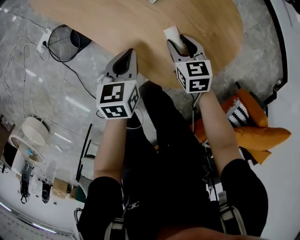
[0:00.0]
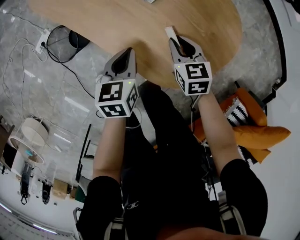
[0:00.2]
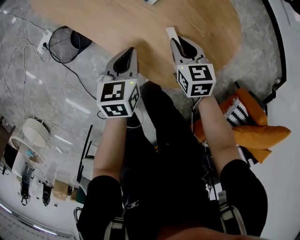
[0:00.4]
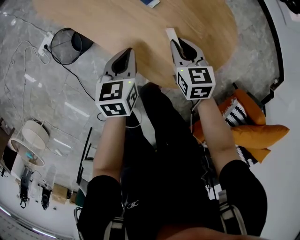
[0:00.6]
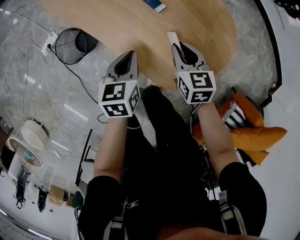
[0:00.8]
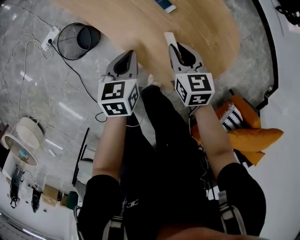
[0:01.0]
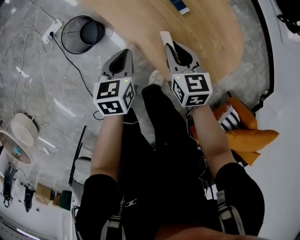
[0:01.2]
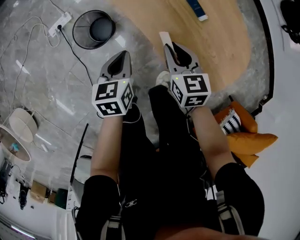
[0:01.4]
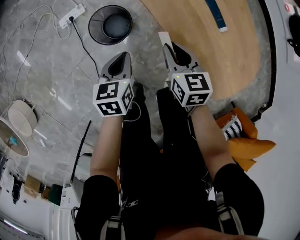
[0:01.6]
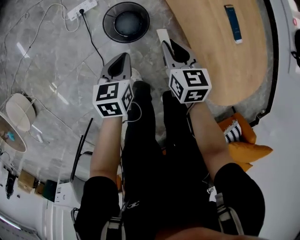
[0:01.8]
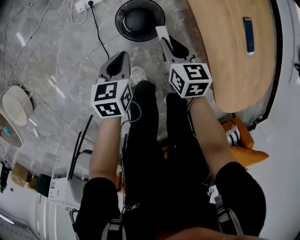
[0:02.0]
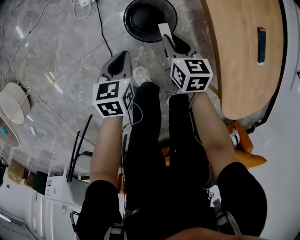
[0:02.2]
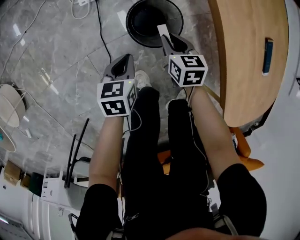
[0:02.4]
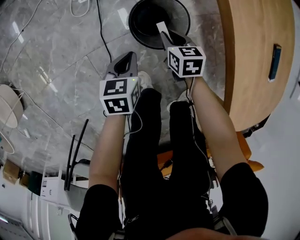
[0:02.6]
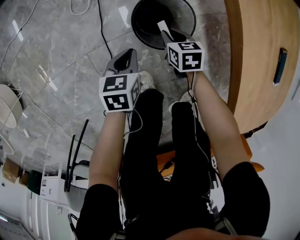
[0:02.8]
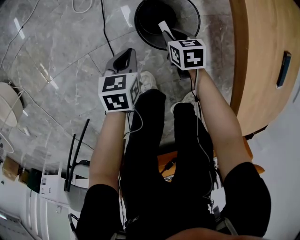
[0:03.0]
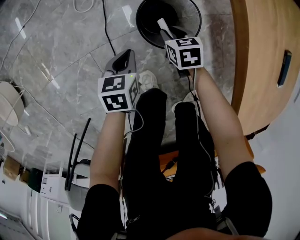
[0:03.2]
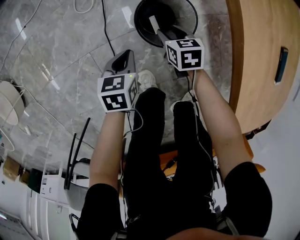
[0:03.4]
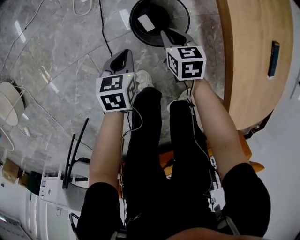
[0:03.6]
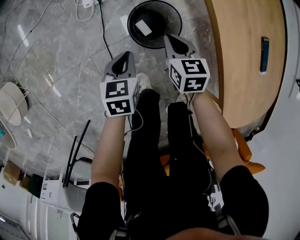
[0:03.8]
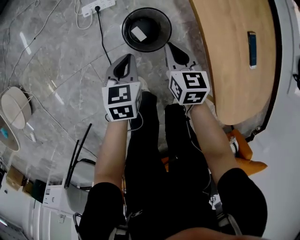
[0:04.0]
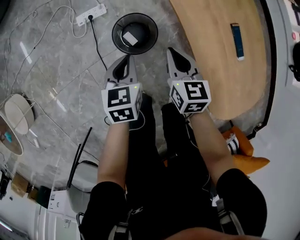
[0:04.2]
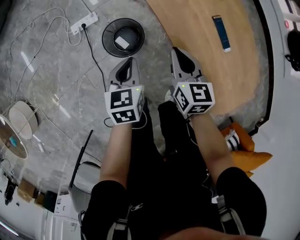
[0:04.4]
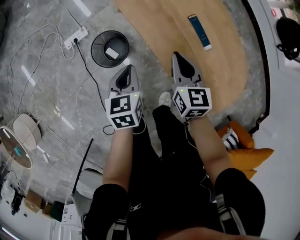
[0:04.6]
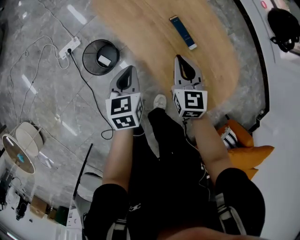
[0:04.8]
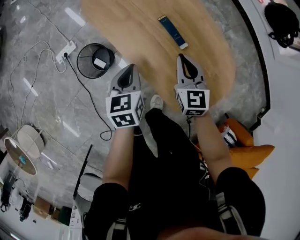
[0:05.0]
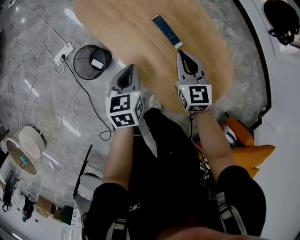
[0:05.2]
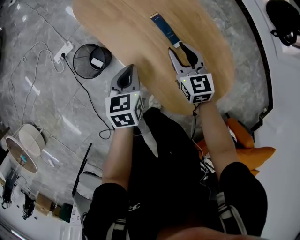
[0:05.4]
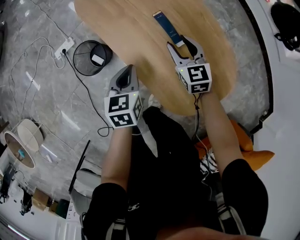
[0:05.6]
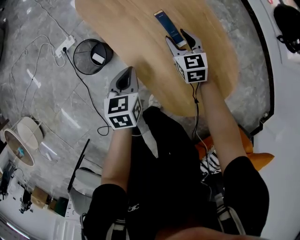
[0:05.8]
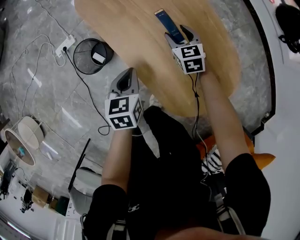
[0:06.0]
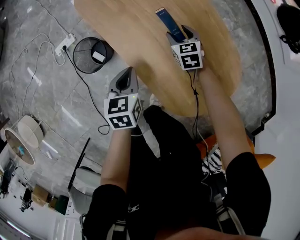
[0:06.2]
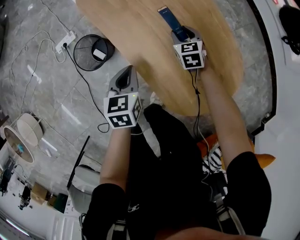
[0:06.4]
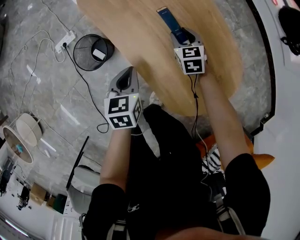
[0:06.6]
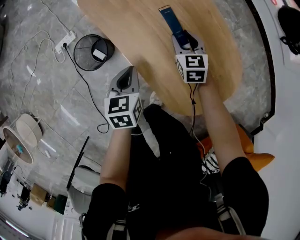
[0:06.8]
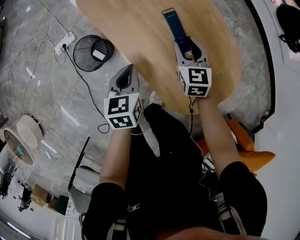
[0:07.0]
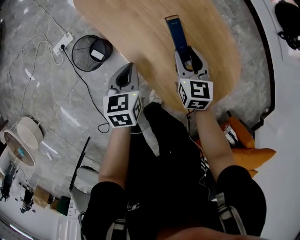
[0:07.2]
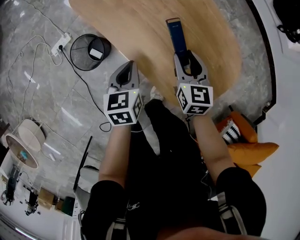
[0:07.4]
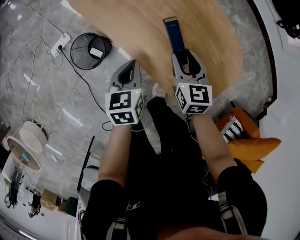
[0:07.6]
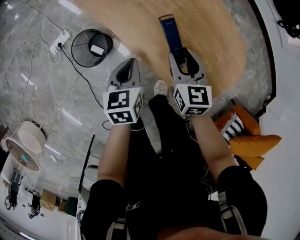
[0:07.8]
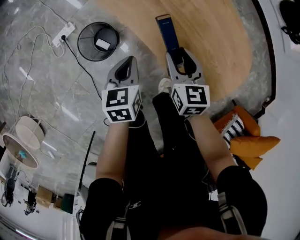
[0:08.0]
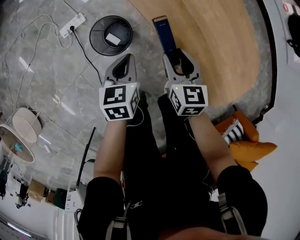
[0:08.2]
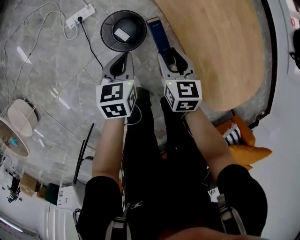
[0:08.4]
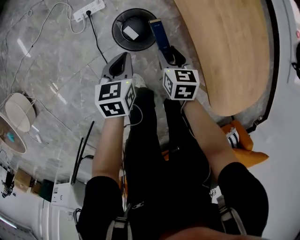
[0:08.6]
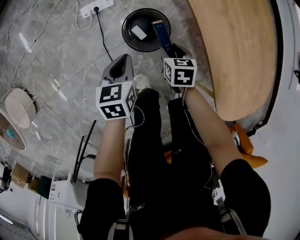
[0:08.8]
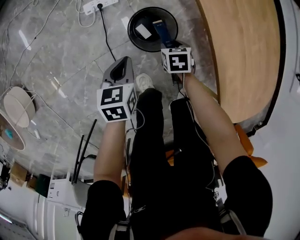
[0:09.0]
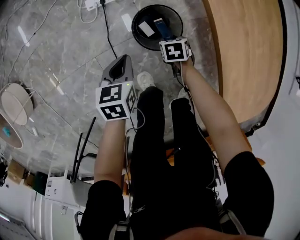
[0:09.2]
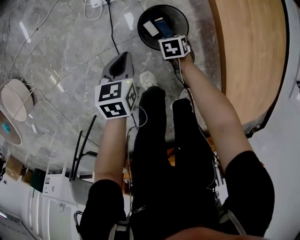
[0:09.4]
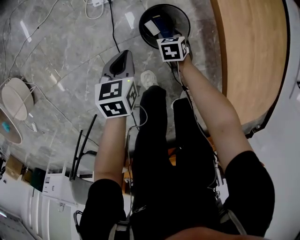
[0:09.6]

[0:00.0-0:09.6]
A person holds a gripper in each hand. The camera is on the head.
0:00.0 to 0:01.6: The grippers both shift to the left by about 30 cm. The right gripper closes up.
0:01.6 to 0:03.2: The grippers both shift downward and to the left by roughly 35 cm. The right gripper changes its angle by approximately 30 degrees.
0:03.2 to 0:04.8: The right gripper moves upward and to the right, some 60 cm, points its fingers about 30 degrees further upward, and closes up; the left gripper is displaced to the right and upward by about 50 cm, and turns by roughly 20 degrees.
0:04.8 to 0:06.4: The left gripper goes about 10 cm to the right and downward; the right gripper is displaced downward, forward and to the right by some 25 cm, swivels about 20 degrees, and opens.
0:06.4 to 0:08.0: The left gripper moves to the left, approximately 10 cm. Meanwhile the right gripper shifts about 20 cm backward, to the left and upward, and turns by about 20 degrees.
0:08.0 to 0:09.6: The right gripper moves roughly 50 cm, and angles its fingers downward, by approximately 30 degrees; the left gripper changes place by approximately 35 cm, and swivels about 20 degrees.

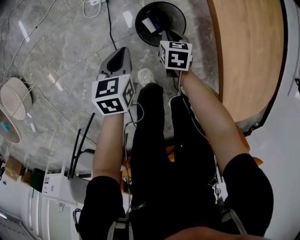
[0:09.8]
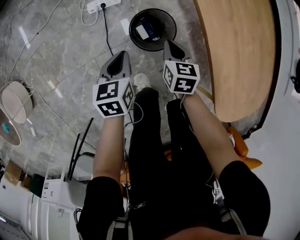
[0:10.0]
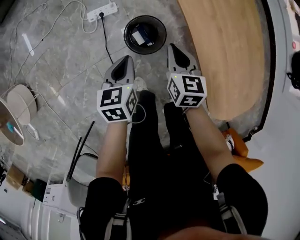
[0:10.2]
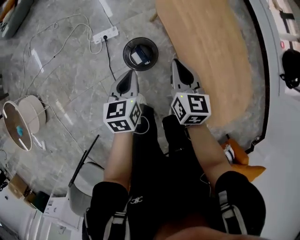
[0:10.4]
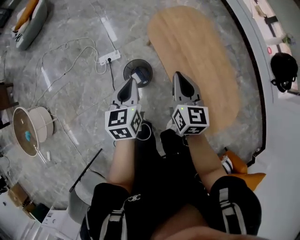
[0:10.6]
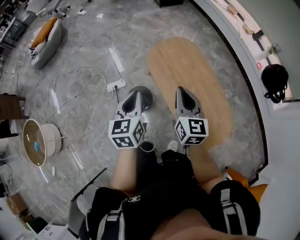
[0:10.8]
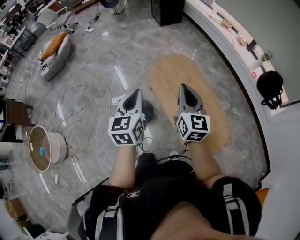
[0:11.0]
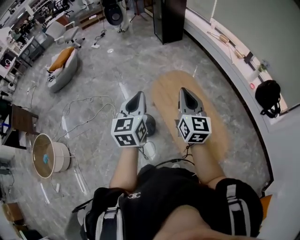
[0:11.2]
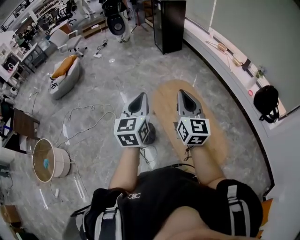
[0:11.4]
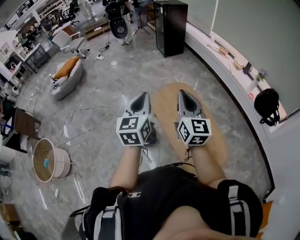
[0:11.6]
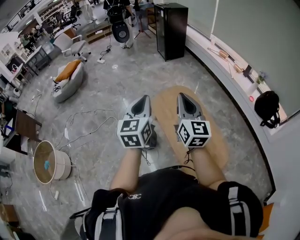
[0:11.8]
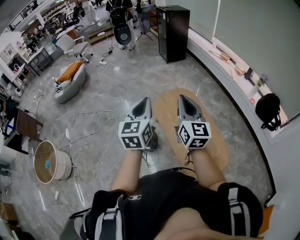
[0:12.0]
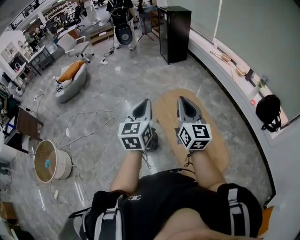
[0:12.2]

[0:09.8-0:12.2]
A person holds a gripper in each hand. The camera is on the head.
0:09.8 to 0:11.0: The left gripper travels upward and to the right by approximately 70 cm, and points its fingers about 30 degrees further upward; the right gripper is displaced upward by some 70 cm, and tilts its fingers some 60 degrees upward.
0:11.0 to 0:12.2: Both grippers move upward, about 10 cm.

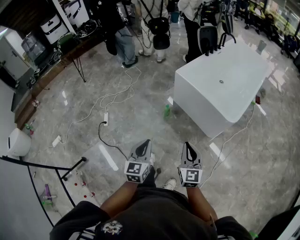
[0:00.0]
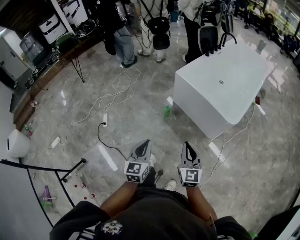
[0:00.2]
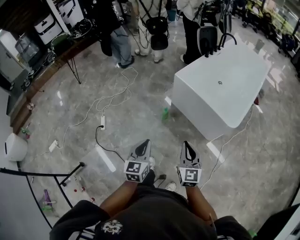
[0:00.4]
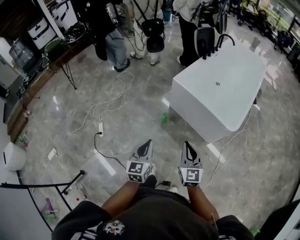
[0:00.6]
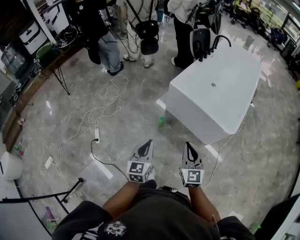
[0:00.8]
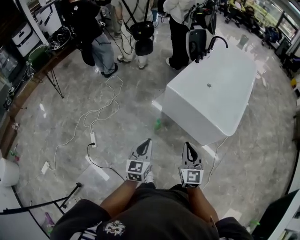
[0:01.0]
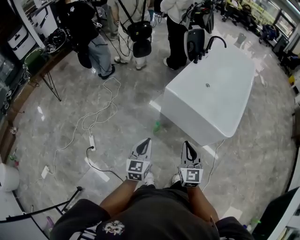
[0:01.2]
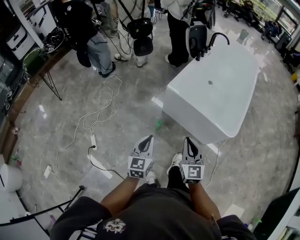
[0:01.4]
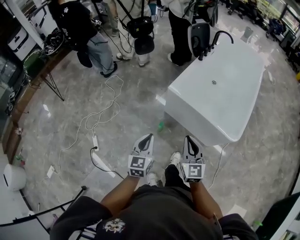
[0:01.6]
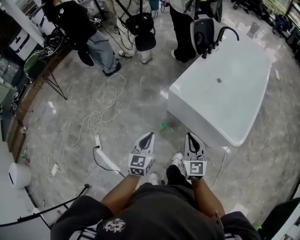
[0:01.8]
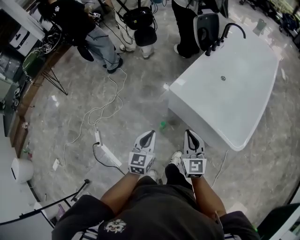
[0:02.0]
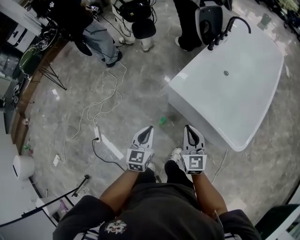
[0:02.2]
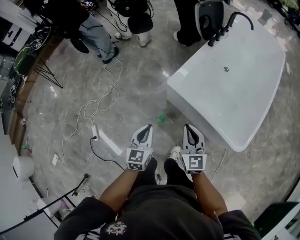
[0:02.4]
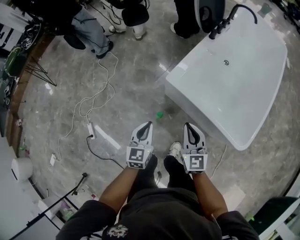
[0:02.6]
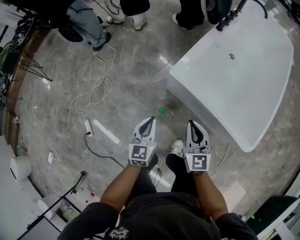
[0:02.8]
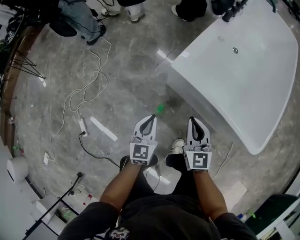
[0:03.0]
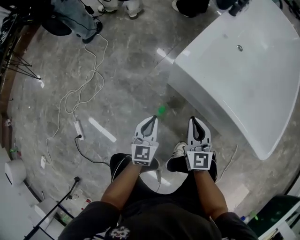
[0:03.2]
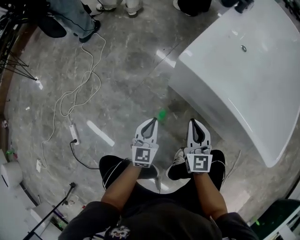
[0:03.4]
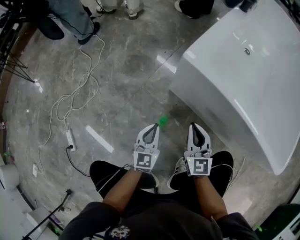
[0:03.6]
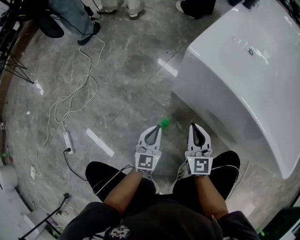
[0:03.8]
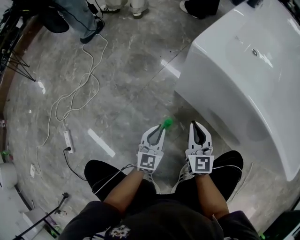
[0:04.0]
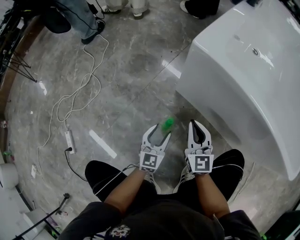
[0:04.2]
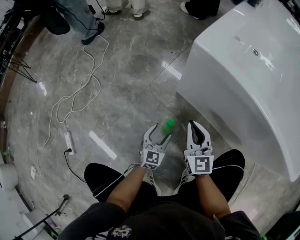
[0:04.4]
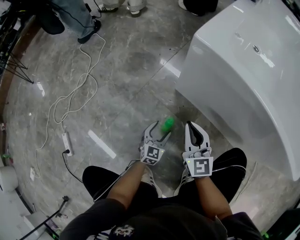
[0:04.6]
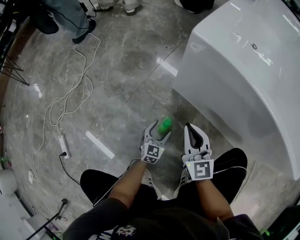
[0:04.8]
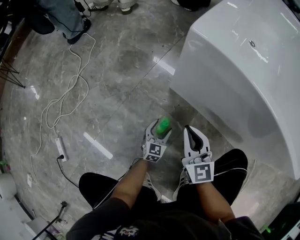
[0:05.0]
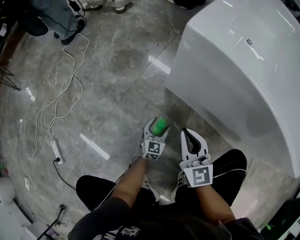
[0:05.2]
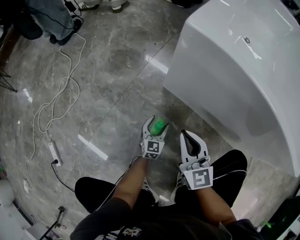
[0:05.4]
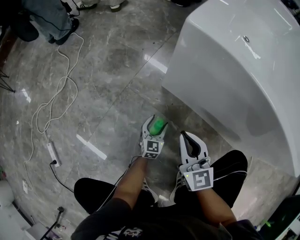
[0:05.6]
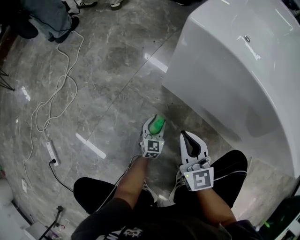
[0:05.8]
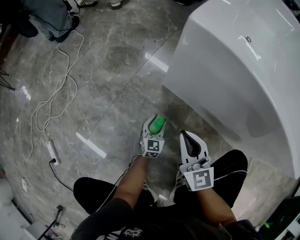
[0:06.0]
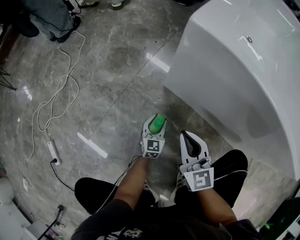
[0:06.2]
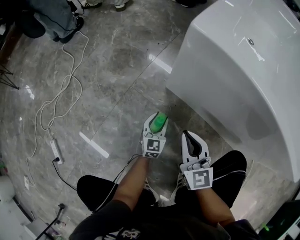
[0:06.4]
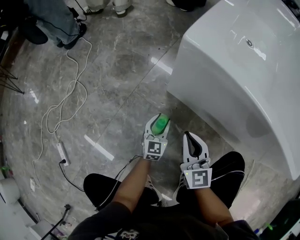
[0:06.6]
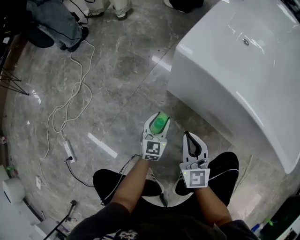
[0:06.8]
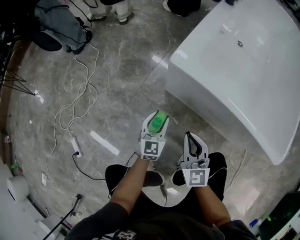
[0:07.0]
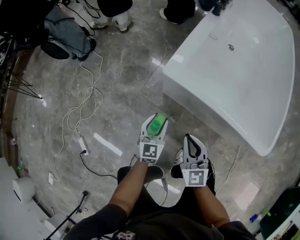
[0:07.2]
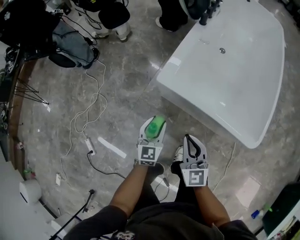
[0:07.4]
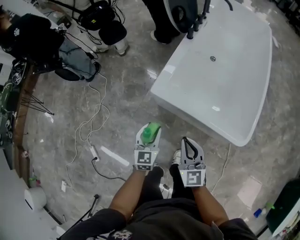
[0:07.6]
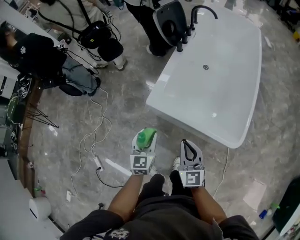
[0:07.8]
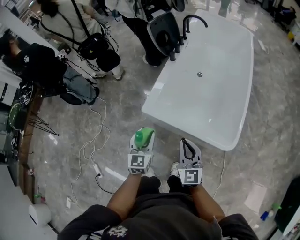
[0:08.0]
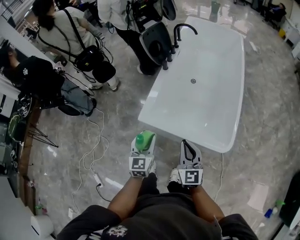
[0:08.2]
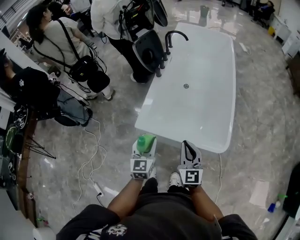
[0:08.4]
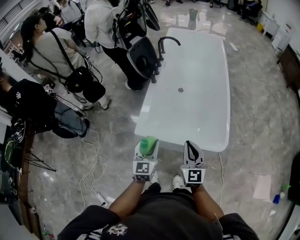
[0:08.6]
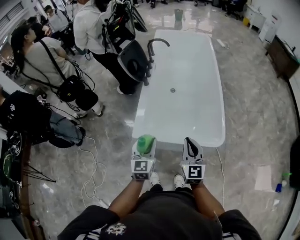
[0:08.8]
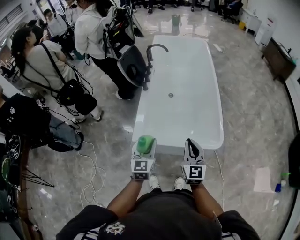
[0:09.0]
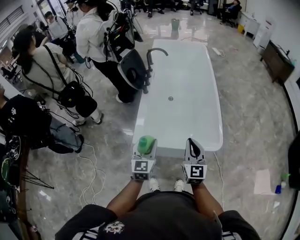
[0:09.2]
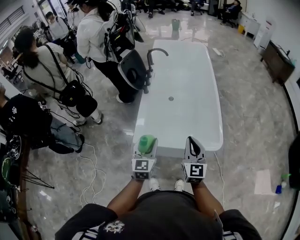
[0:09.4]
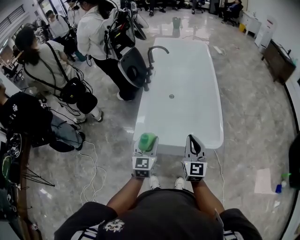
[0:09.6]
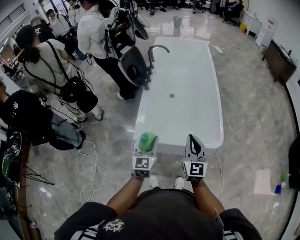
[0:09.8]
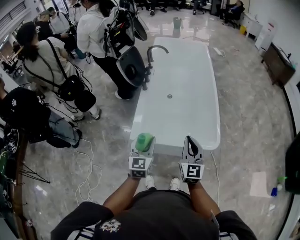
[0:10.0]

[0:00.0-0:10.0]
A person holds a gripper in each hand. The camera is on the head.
0:00.0 to 0:01.4: The left gripper is displaced forward by approximately 35 cm, while the right gripper heads forward and to the left, covering roughly 30 cm.
0:01.4 to 0:02.8: The two grippers go roughly 35 cm forward and downward.
0:02.8 to 0:04.2: Both grippers move downward, approximately 40 cm. The left gripper opens its fingers.
0:04.2 to 0:05.8: The left gripper moves downward, roughly 20 cm.
0:05.8 to 0:07.2: The left gripper is displaced upward by approximately 50 cm. The right gripper heads upward, covering approximately 30 cm.
0:07.2 to 0:08.6: The left gripper travels upward by about 40 cm. The right gripper heads upward and to the right, covering approximately 40 cm, and turns by roughly 30 degrees.
0:08.6 to 0:10.0: Both grippers move upward, roughly 5 cm.

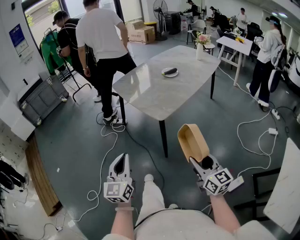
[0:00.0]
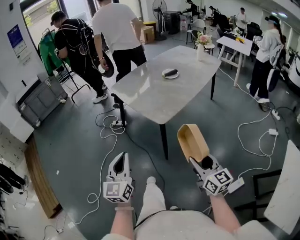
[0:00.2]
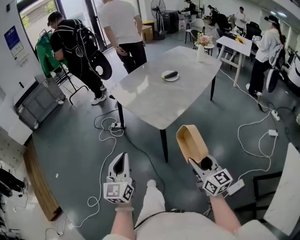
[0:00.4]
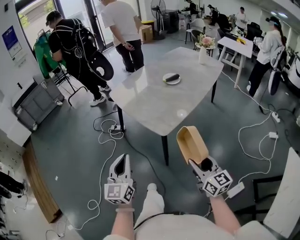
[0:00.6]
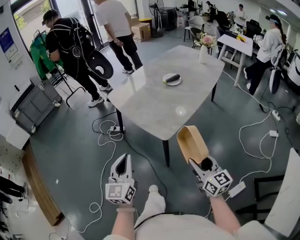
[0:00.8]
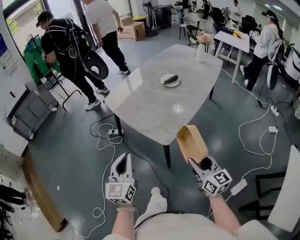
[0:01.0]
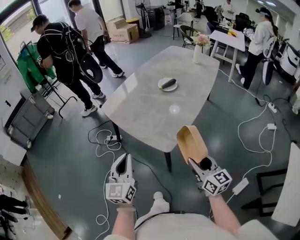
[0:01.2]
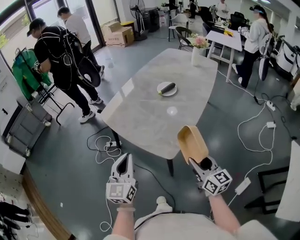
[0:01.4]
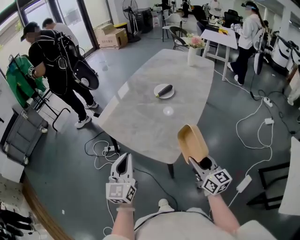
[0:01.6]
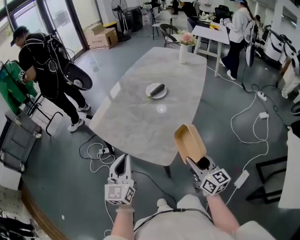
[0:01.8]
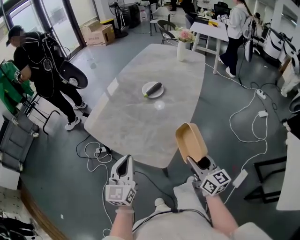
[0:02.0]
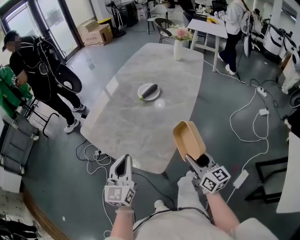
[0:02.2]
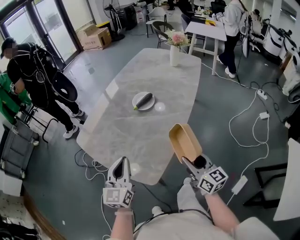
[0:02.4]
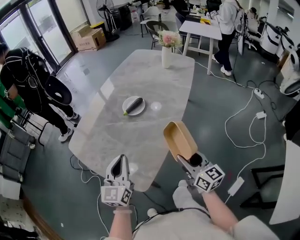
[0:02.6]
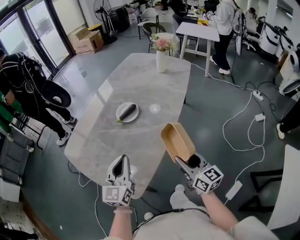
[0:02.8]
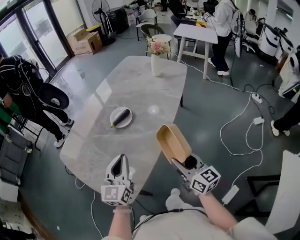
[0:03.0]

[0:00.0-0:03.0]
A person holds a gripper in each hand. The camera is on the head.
0:00.0 to 0:01.6: The two grippers go about 30 cm forward.
0:01.6 to 0:03.0: The two grippers go about 30 cm to the right and forward.
